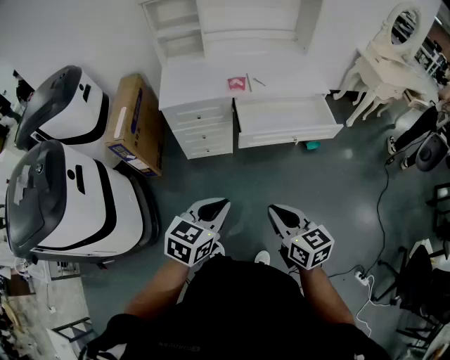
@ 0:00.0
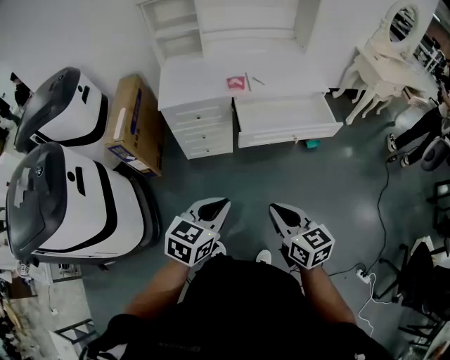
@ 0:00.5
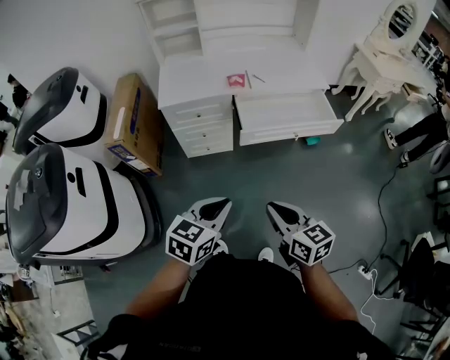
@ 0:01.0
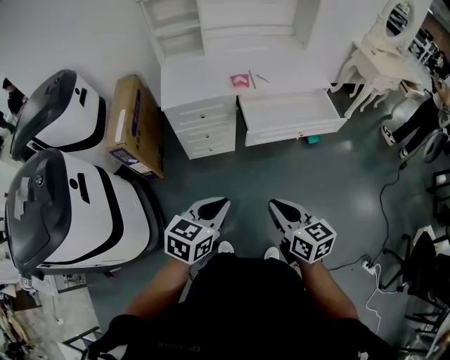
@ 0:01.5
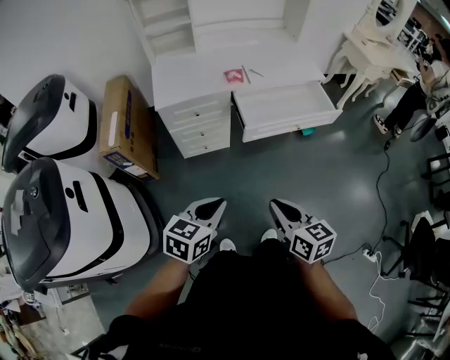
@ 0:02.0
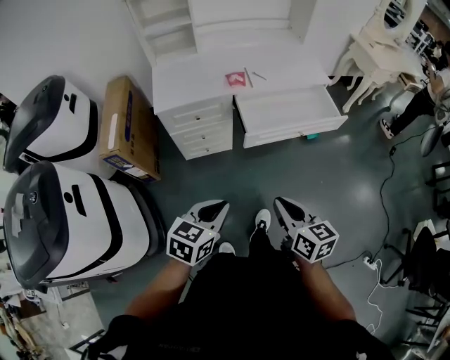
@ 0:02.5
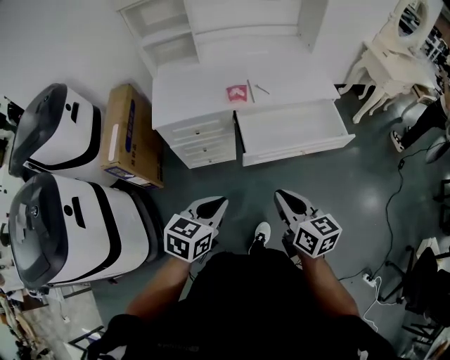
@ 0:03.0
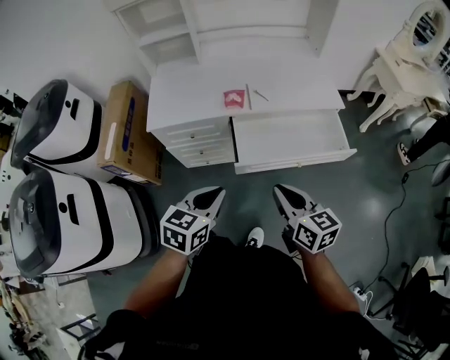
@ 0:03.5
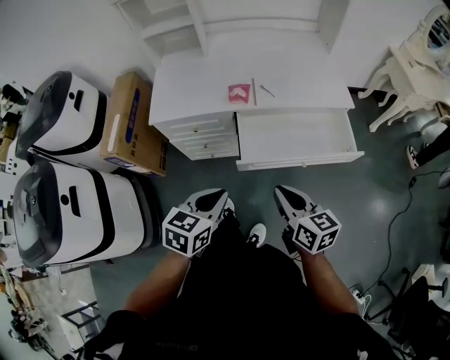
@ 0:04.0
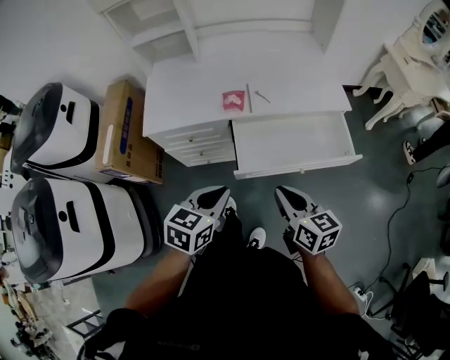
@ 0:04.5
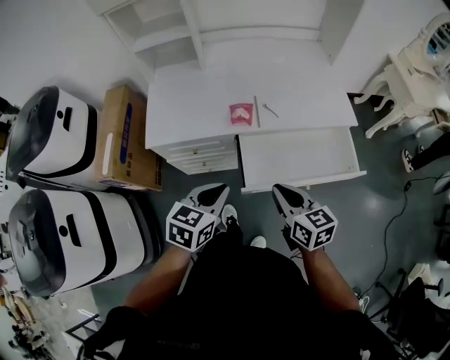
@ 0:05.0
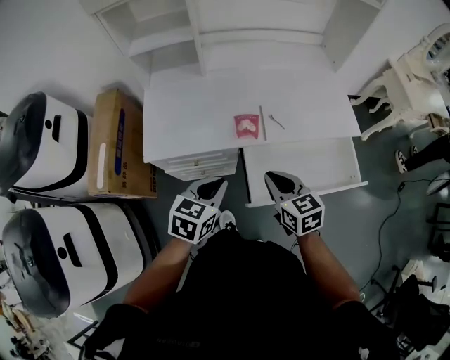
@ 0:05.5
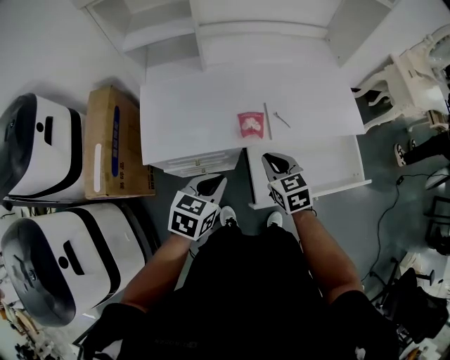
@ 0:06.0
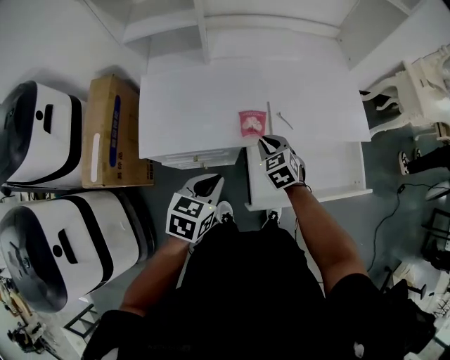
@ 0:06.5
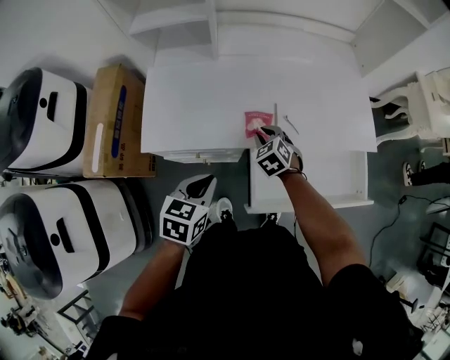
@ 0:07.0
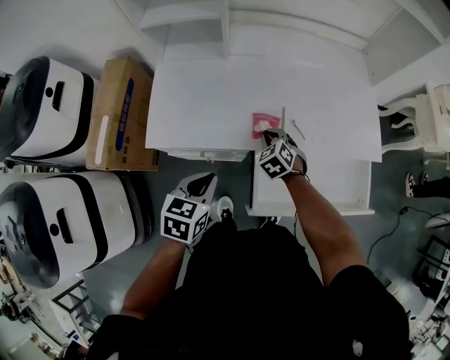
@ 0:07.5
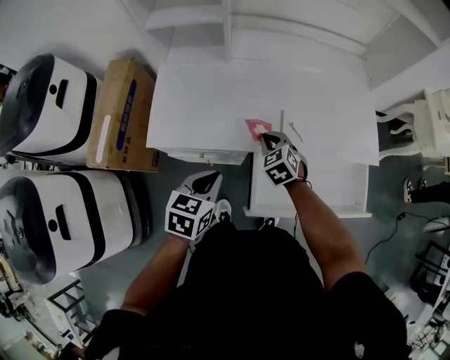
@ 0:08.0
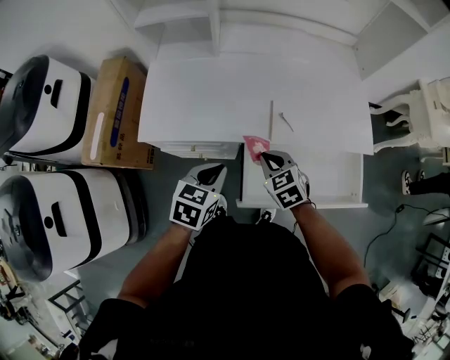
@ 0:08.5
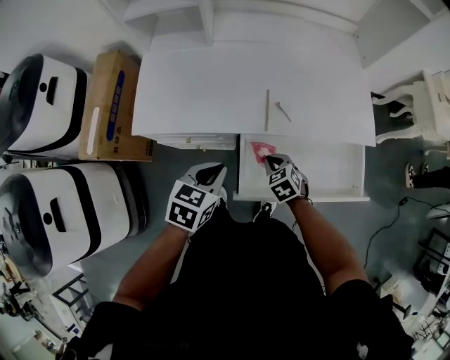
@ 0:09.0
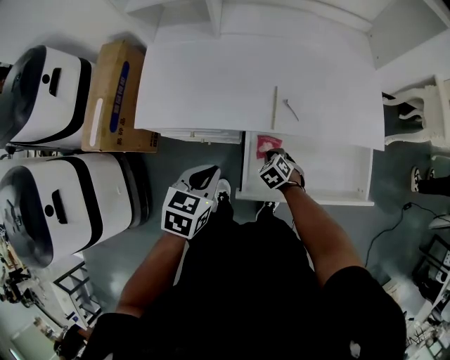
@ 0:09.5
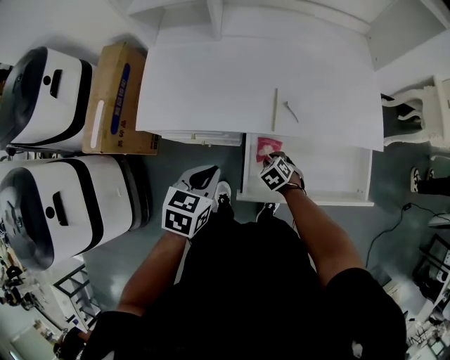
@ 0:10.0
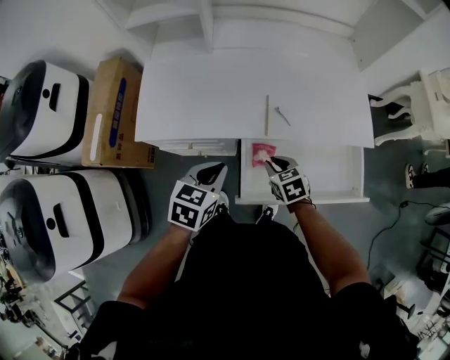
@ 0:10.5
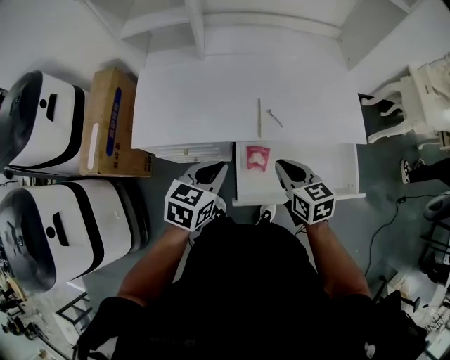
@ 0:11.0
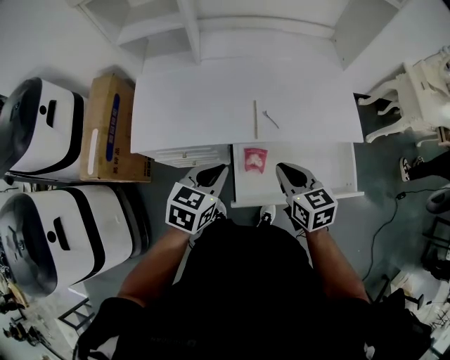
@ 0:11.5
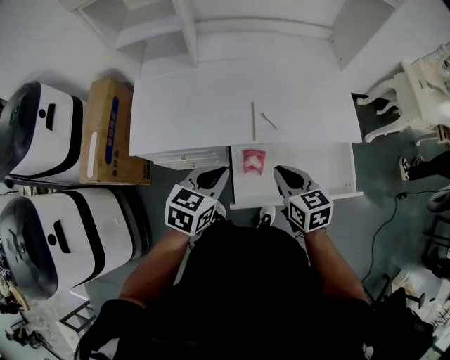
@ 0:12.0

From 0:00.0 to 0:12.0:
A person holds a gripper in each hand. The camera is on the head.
From 0:00.0 to 0:02.0: The two grippers go approximately 10 cm to the left.
From 0:02.0 to 0:04.0: Both grippers travel together forward and to the right, some 25 cm.
From 0:04.0 to 0:06.0: Both grippers travel together forward and to the left, about 30 cm. The right gripper swivels roughly 30 degrees.
From 0:06.0 to 0:08.0: The right gripper travels forward and downward by about 10 cm, and turns by approximately 30 degrees.
From 0:08.0 to 0:10.0: The right gripper moves downward, backward and to the right, approximately 20 cm, and changes its angle by about 20 degrees. Meanwhile the left gripper shifts by approximately 5 cm.
From 0:10.0 to 0:12.0: The right gripper goes about 25 cm upward, and points its fingers about 40 degrees further upward. The left gripper is displaced to the right and upward by roughly 10 cm.

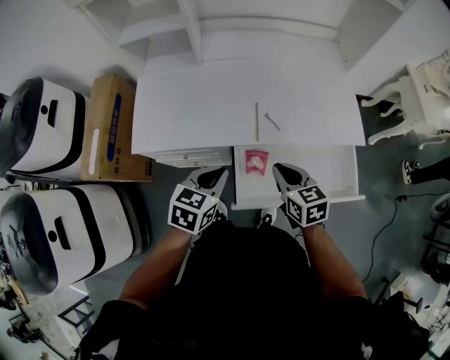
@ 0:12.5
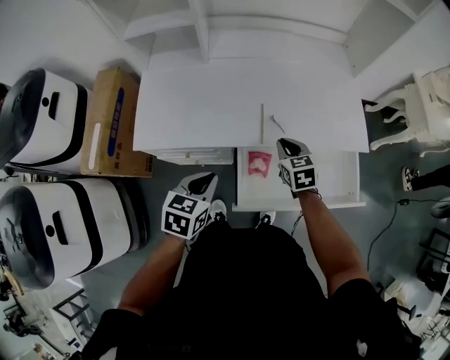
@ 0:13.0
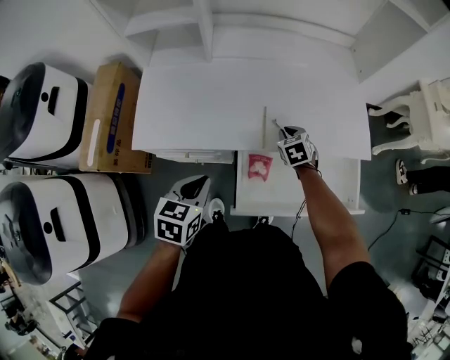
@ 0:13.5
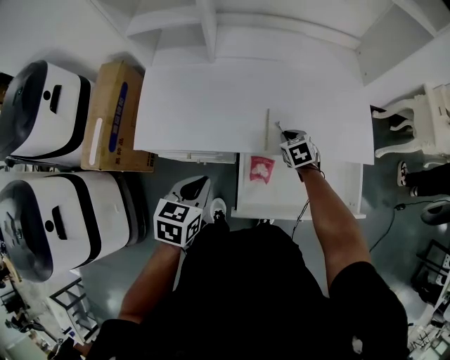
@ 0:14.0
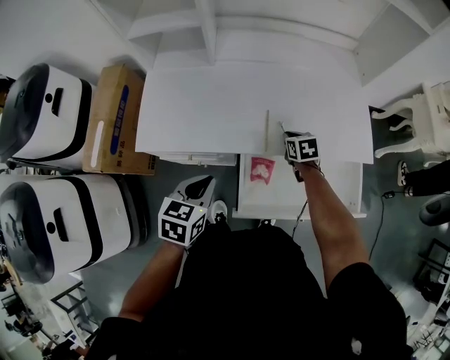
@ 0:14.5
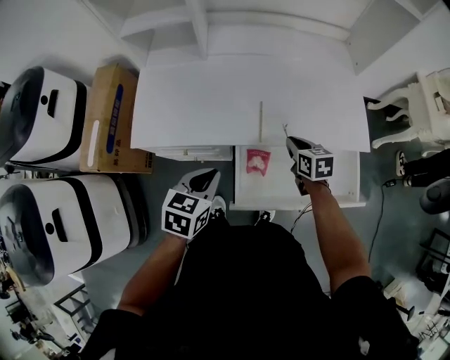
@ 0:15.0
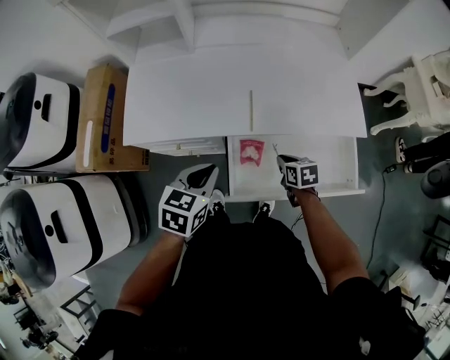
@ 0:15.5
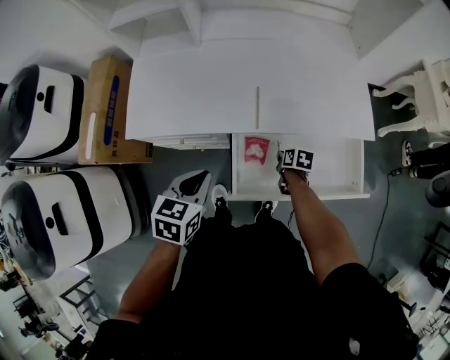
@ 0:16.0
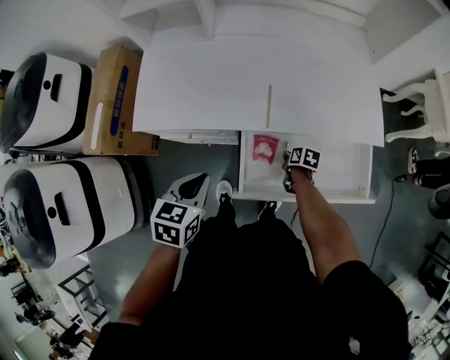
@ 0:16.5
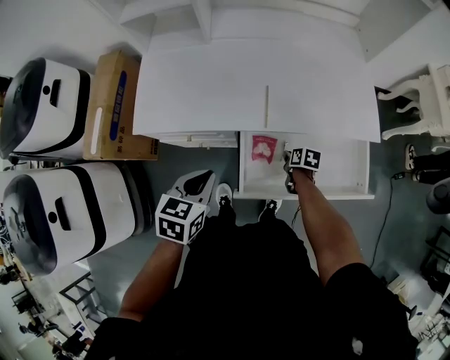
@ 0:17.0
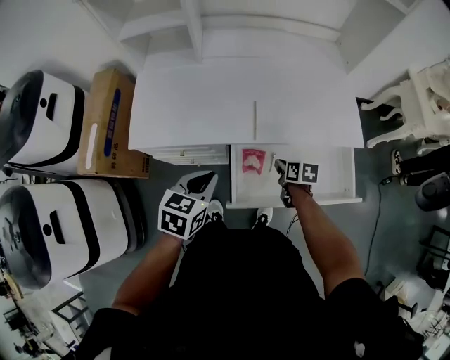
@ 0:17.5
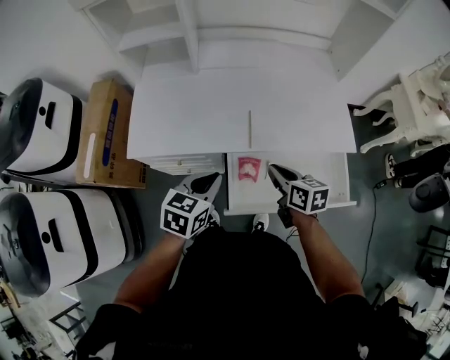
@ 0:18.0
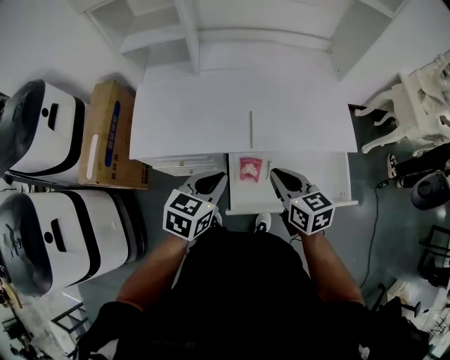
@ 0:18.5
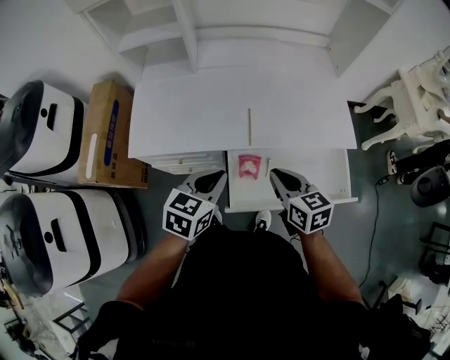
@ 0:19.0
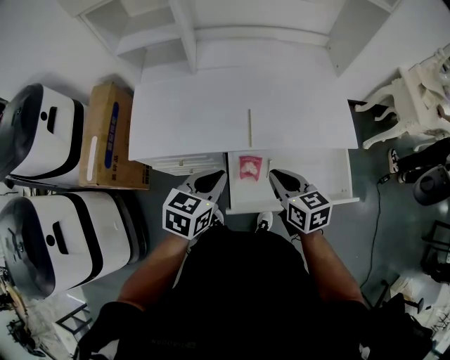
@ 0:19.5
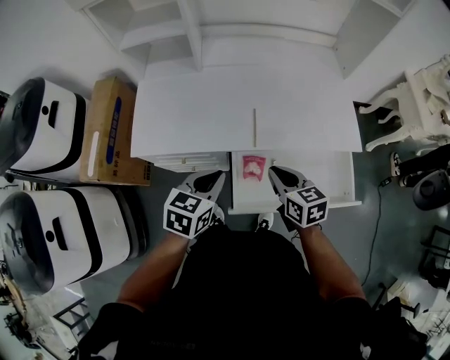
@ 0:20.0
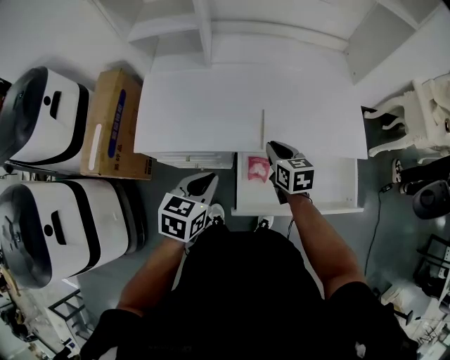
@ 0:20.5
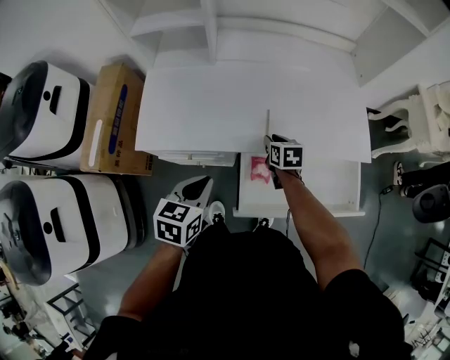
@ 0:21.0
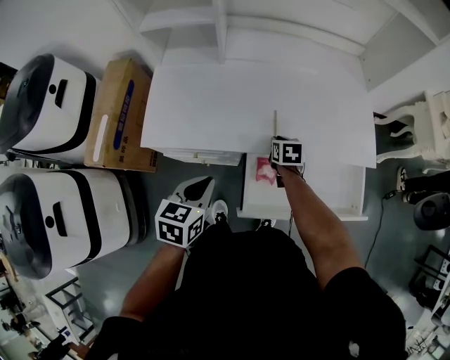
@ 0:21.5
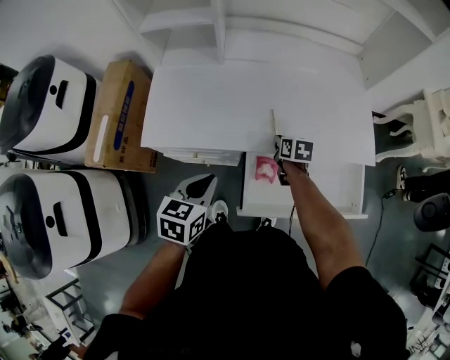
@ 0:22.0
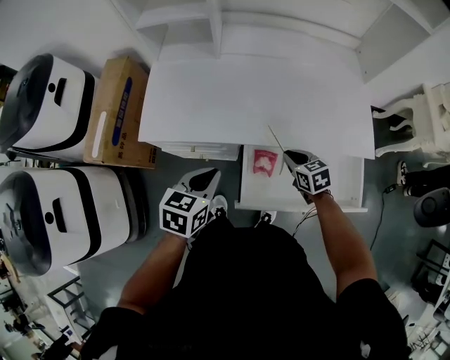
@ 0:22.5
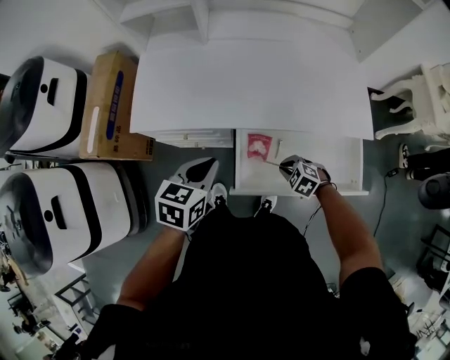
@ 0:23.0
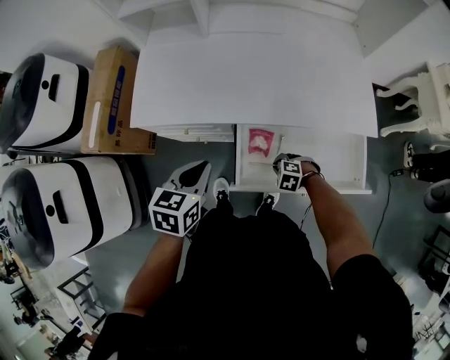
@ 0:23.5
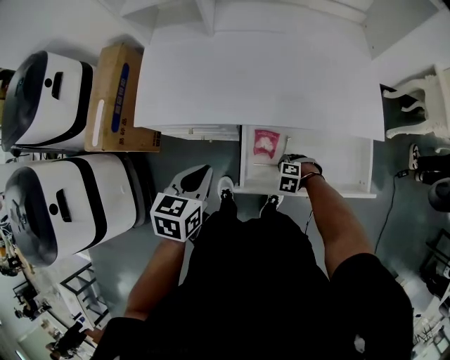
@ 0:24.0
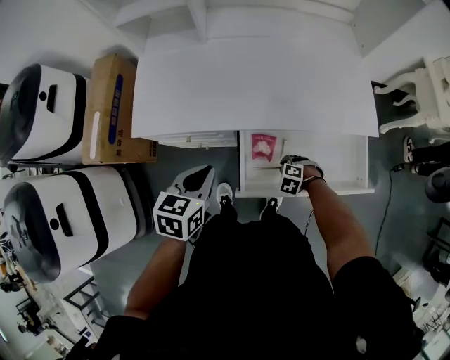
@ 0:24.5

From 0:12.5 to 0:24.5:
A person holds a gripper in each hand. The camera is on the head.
From 0:12.5 to 0:14.5: The right gripper heads forward and downward, covering some 25 cm. Meanwhile the left gripper shifts approximately 5 cm to the left.
From 0:14.5 to 0:16.5: The right gripper moves downward and backward, about 20 cm, and rotates about 40 degrees, while the left gripper shifts by about 5 cm.
From 0:16.5 to 0:18.5: The right gripper goes about 35 cm upward, and tilts its fingers about 30 degrees upward. The left gripper is displaced to the right and upward by some 10 cm.
From 0:18.5 to 0:20.5: The left gripper heads to the left, covering roughly 5 cm; the right gripper is displaced forward and downward by some 15 cm.
From 0:20.5 to 0:22.5: The right gripper is displaced downward by about 5 cm.
From 0:22.5 to 0:24.5: The right gripper goes some 15 cm downward, and rolls counterclockwise, seen from behind, by approximately 50 degrees.

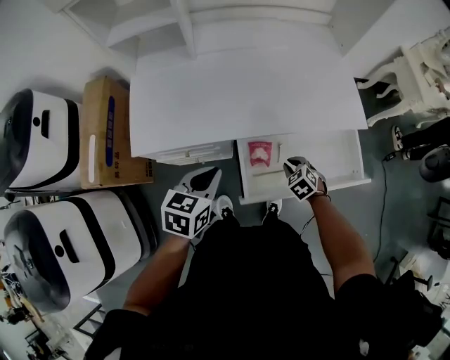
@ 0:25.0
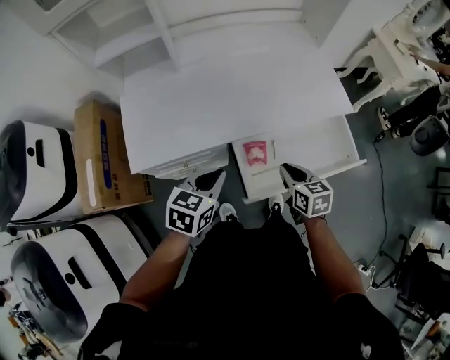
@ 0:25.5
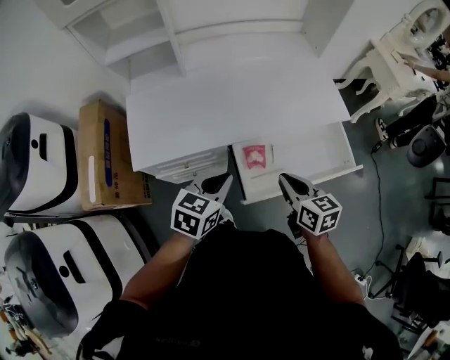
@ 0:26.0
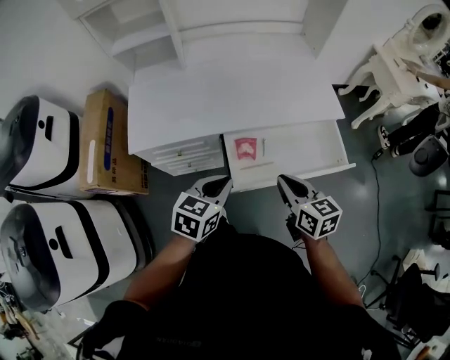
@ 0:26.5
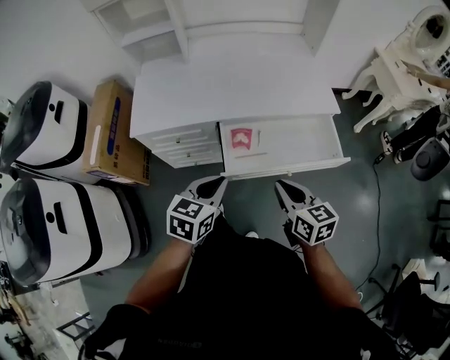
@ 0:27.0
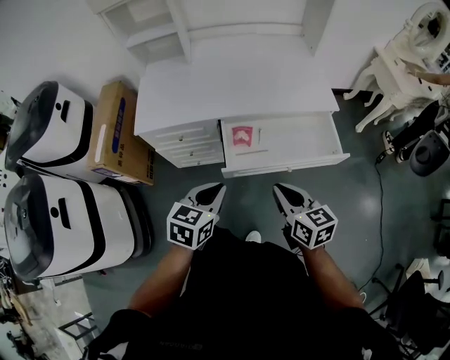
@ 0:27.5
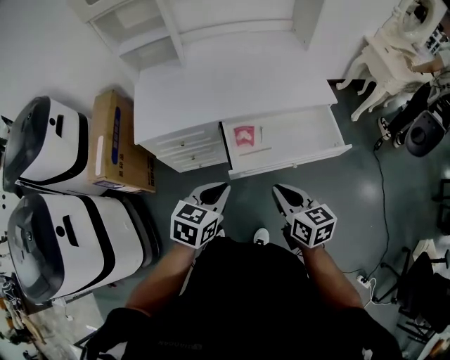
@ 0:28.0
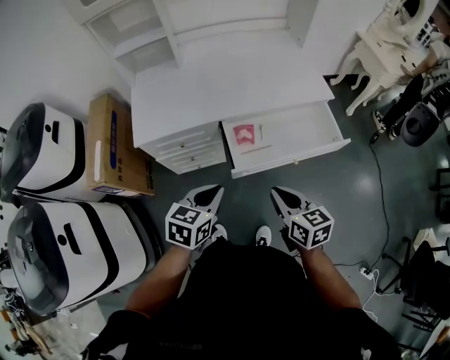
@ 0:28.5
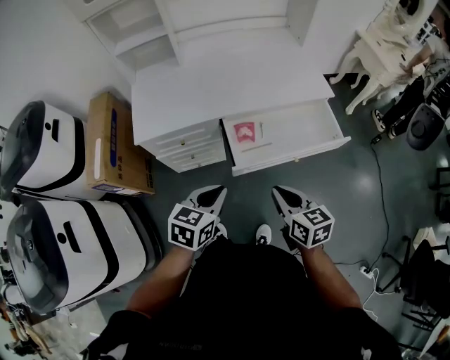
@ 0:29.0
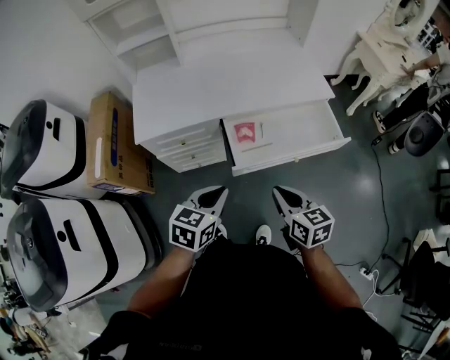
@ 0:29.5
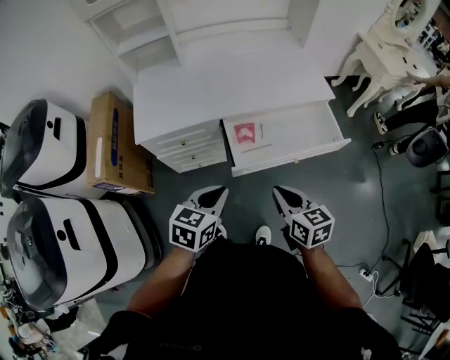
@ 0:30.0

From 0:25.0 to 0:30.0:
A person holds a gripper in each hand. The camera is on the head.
From 0:25.0 to 0:27.5: The right gripper is displaced upward and backward by some 35 cm, and tilts its fingers approximately 40 degrees upward. Meanwhile the left gripper travels backward and to the right by about 25 cm.
From 0:27.5 to 0:30.0: The left gripper shifts by approximately 5 cm. Meanwhile the right gripper goes some 5 cm to the left.
